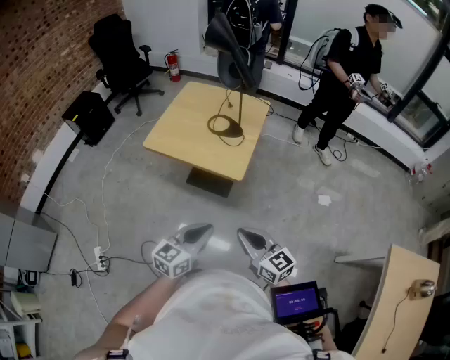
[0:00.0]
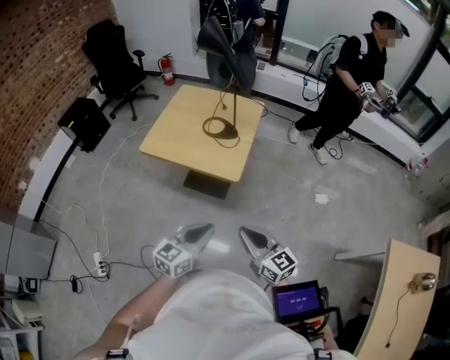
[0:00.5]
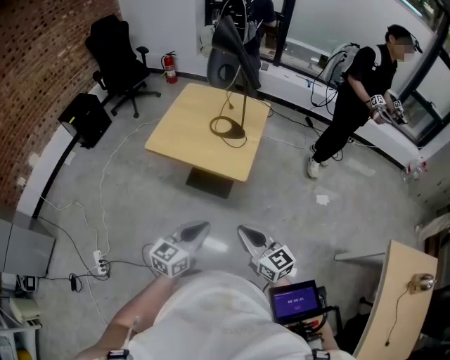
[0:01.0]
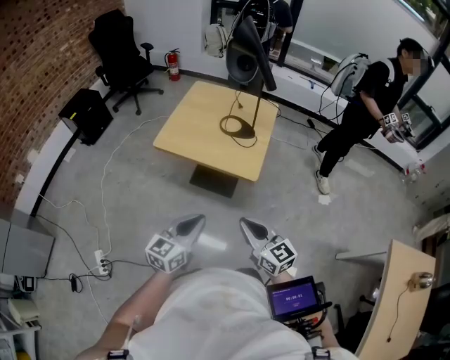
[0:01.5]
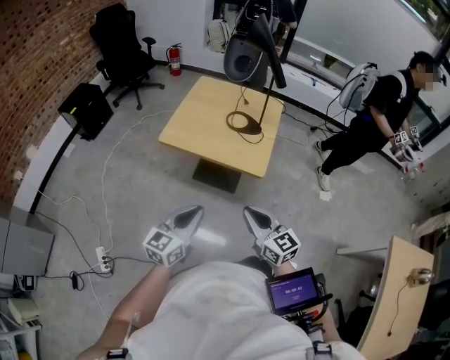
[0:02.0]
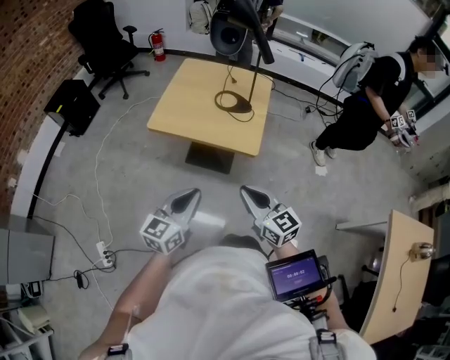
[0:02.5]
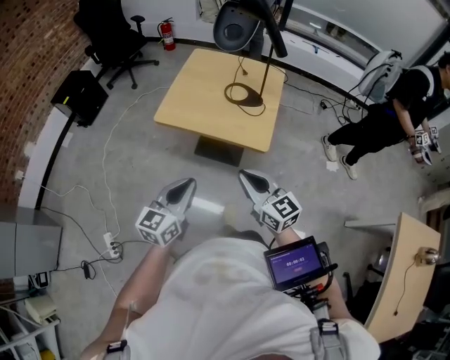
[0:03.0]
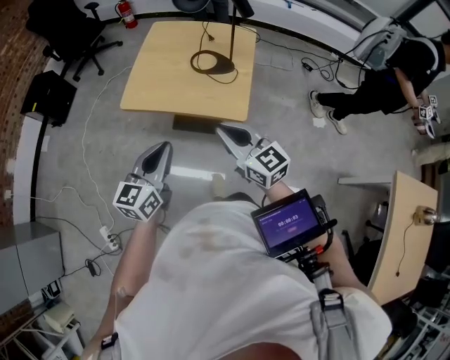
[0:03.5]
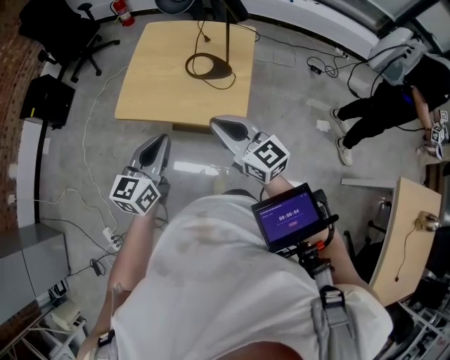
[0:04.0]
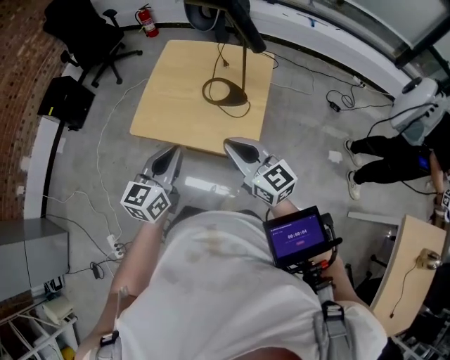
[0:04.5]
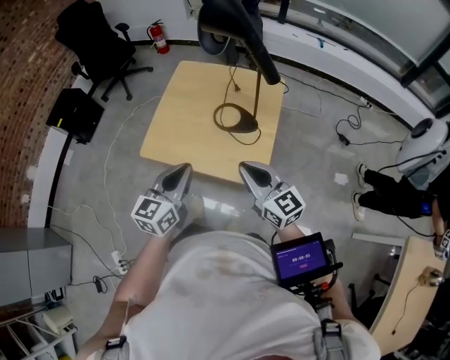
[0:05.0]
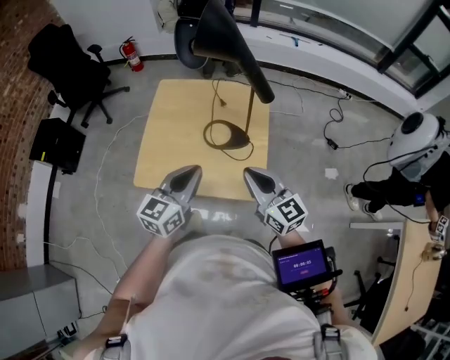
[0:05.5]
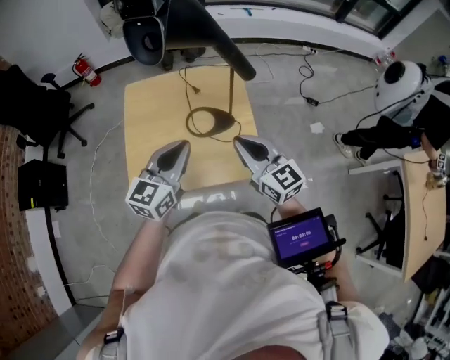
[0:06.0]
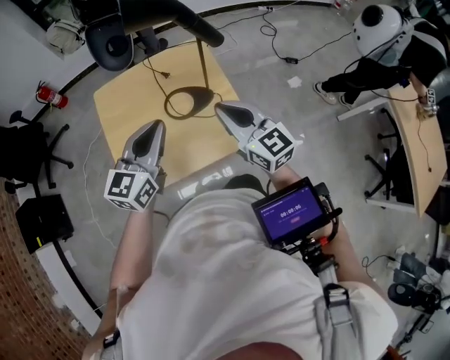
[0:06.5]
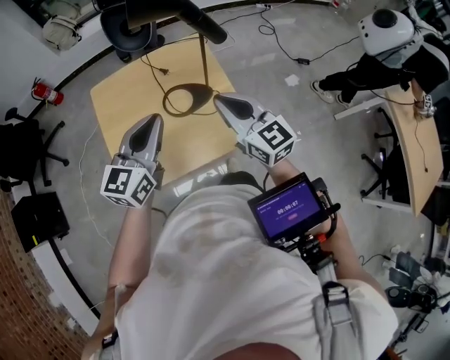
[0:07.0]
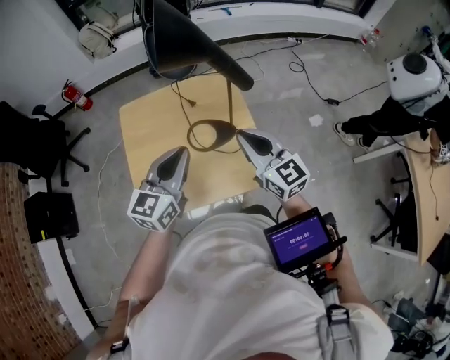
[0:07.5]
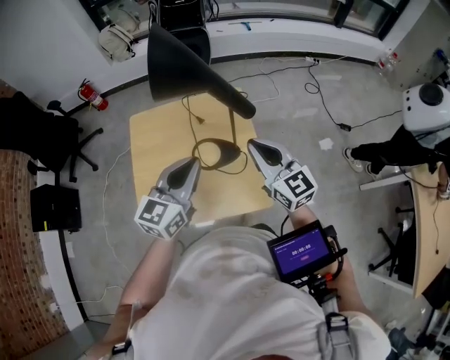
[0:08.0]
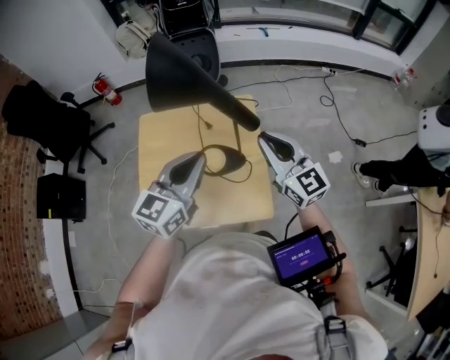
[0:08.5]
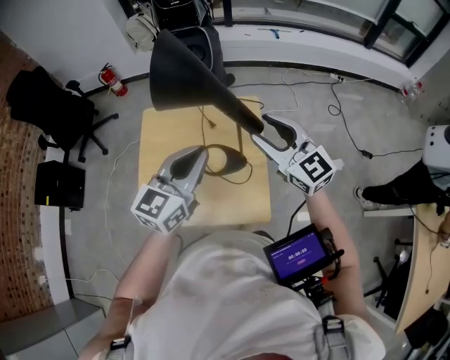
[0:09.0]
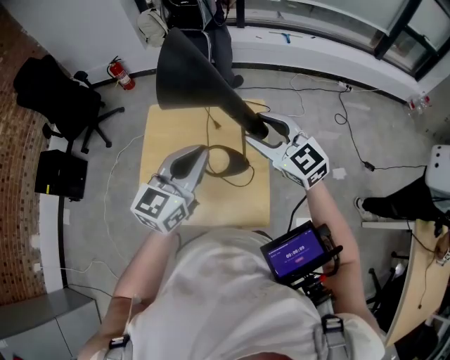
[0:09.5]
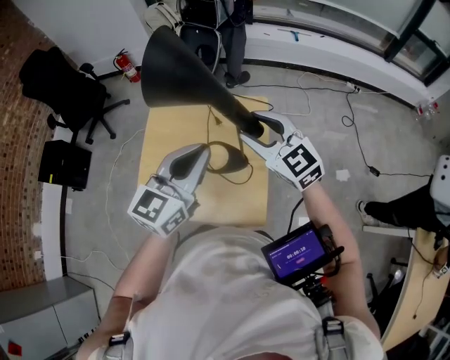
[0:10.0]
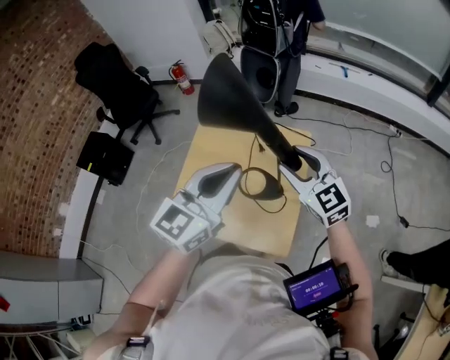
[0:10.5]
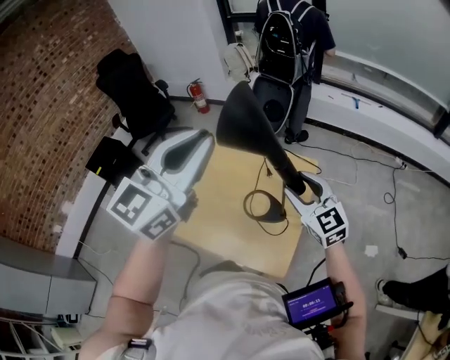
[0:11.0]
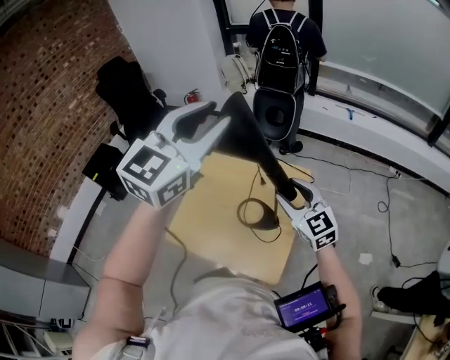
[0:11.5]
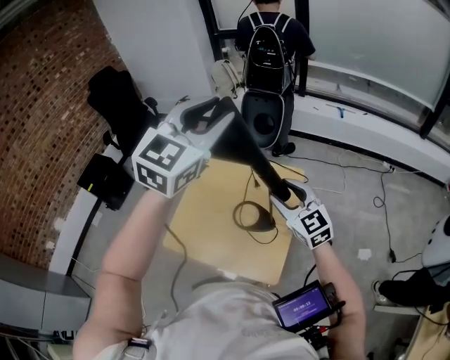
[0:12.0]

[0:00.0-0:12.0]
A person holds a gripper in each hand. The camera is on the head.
0:00.0 to 0:02.0: The grippers both shift to the left by some 15 cm.
0:02.0 to 0:04.0: The grippers both shift forward by about 20 cm.
0:04.0 to 0:06.0: The right gripper ends up some 15 cm from where it was, and turns by roughly 30 degrees. Meanwhile the left gripper ends up roughly 20 cm from where it was, and swivels some 30 degrees.
0:06.0 to 0:08.0: The left gripper moves to the right and forward, roughly 10 cm; the right gripper shifts approximately 10 cm forward and to the right.
0:08.0 to 0:10.0: The right gripper travels forward by roughly 10 cm, rotates approximately 30 degrees, and opens up. Meanwhile the left gripper moves upward, some 5 cm.
0:10.0 to 0:12.0: The left gripper travels upward and forward by approximately 20 cm, rotates about 30 degrees, and opens up.

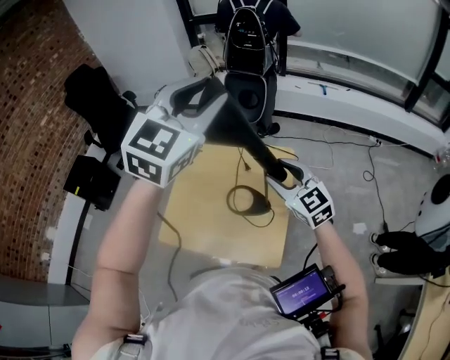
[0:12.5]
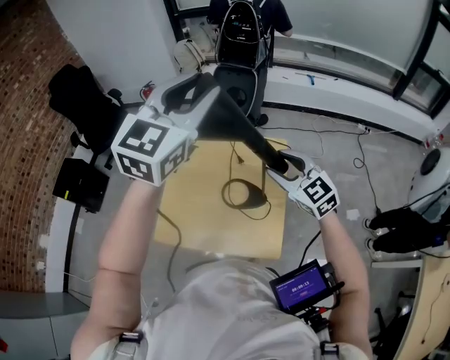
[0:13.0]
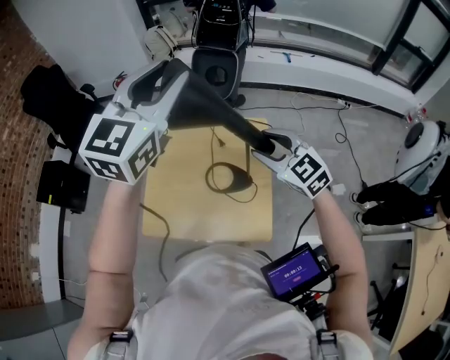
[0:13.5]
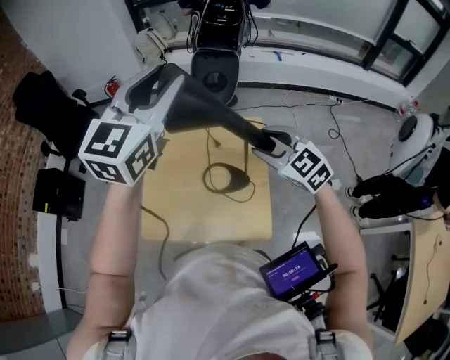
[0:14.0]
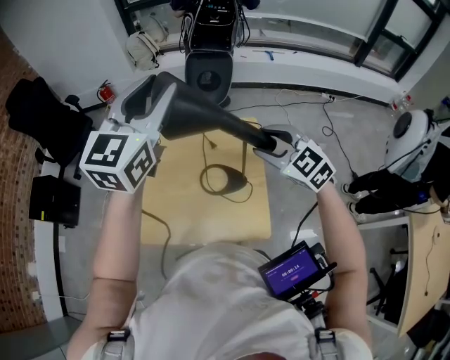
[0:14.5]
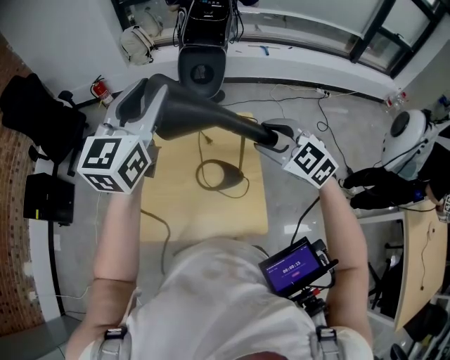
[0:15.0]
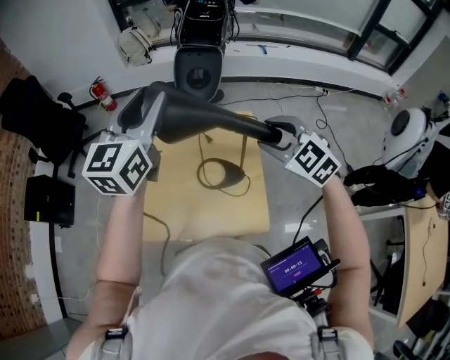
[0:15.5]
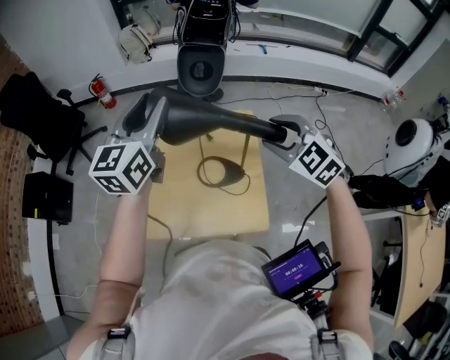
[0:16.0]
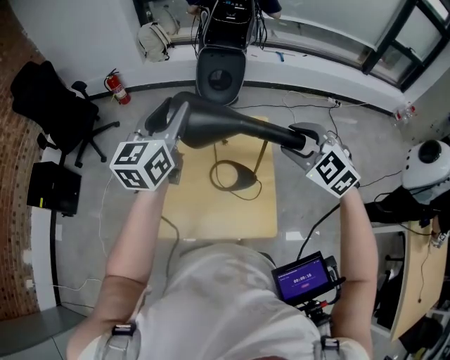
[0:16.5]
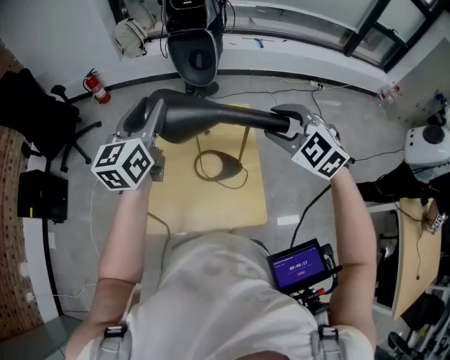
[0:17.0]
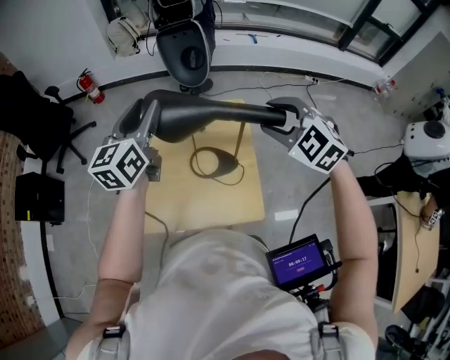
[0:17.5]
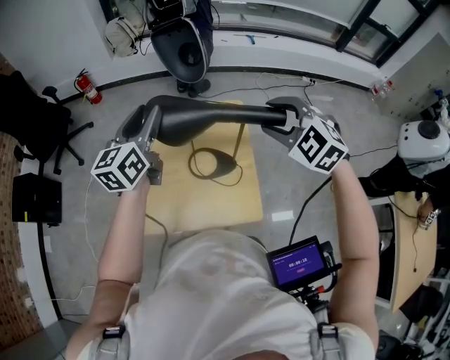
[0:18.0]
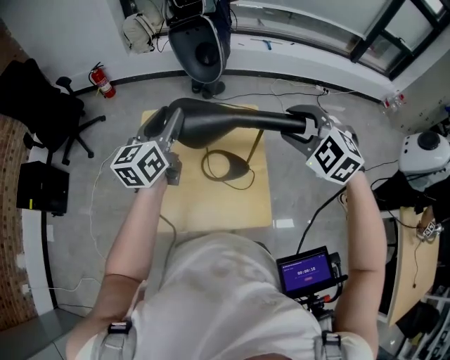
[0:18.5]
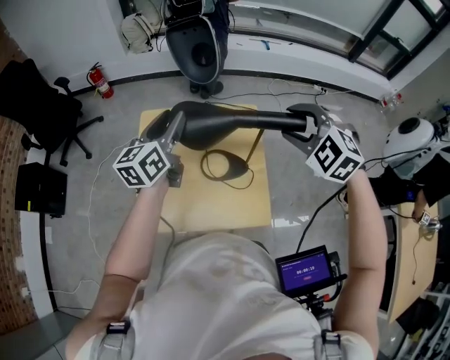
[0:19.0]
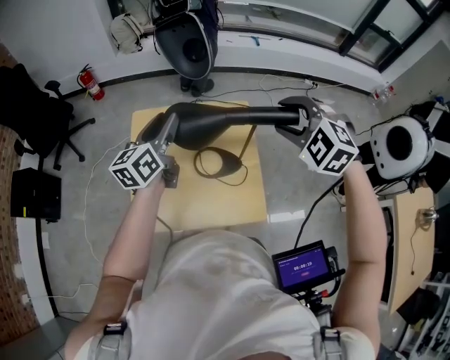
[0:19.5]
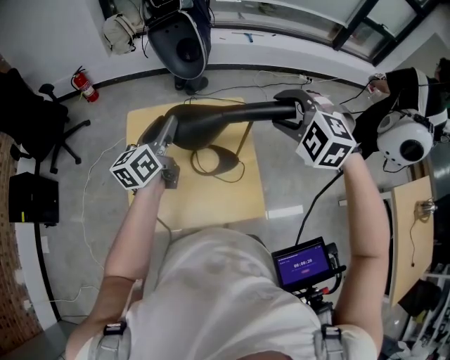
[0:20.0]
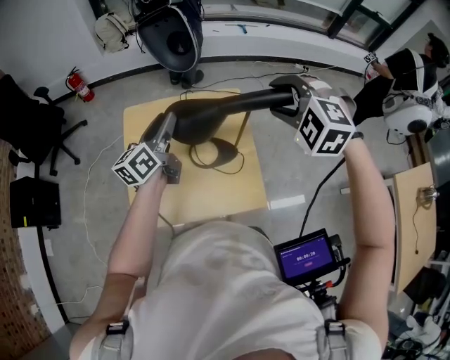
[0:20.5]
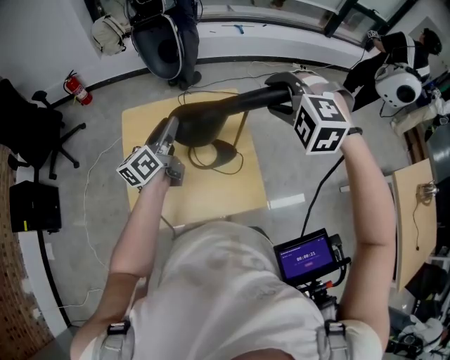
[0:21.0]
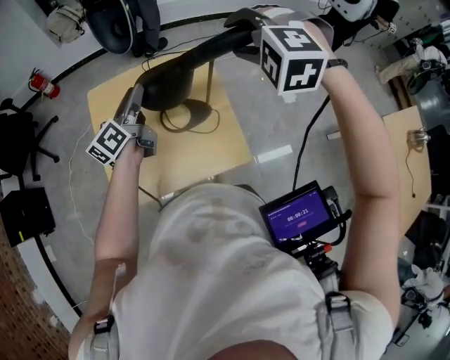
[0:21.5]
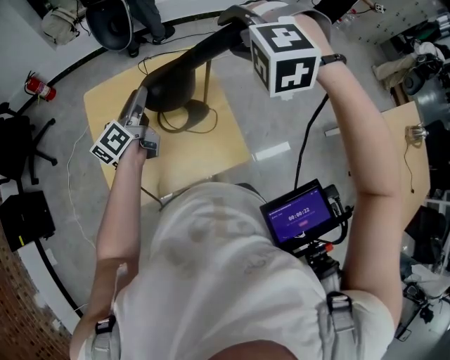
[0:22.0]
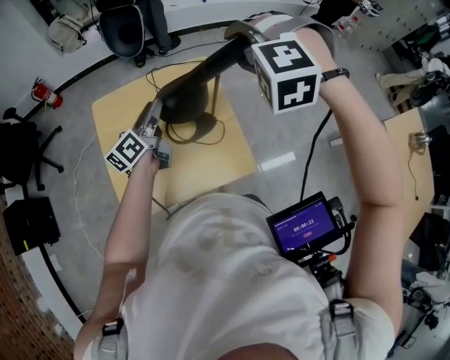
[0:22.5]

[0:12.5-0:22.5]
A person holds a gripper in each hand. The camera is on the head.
0:12.5 to 0:14.5: The left gripper goes roughly 5 cm to the left.
0:14.5 to 0:16.5: The left gripper moves downward, about 10 cm.
0:16.5 to 0:18.5: The left gripper heads downward, covering approximately 10 cm.
0:18.5 to 0:20.5: The left gripper shifts roughly 10 cm downward.
0:20.5 to 0:22.5: The right gripper turns by approximately 20 degrees; the left gripper moves downward and to the right, about 10 cm.

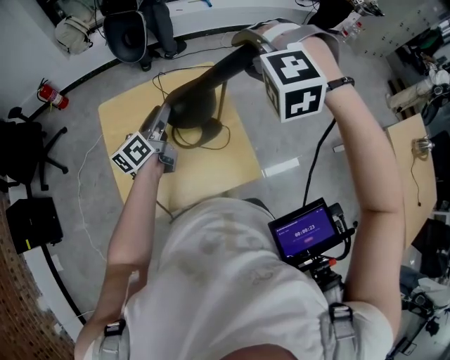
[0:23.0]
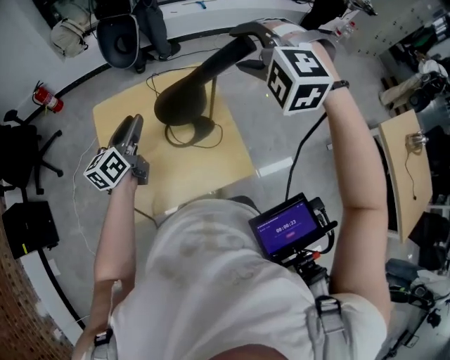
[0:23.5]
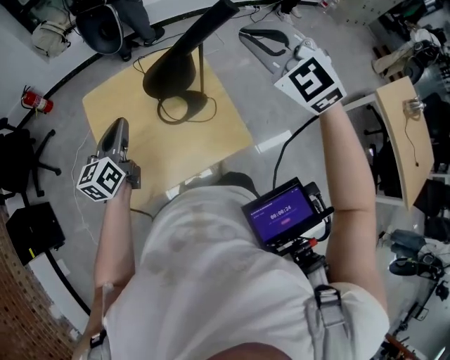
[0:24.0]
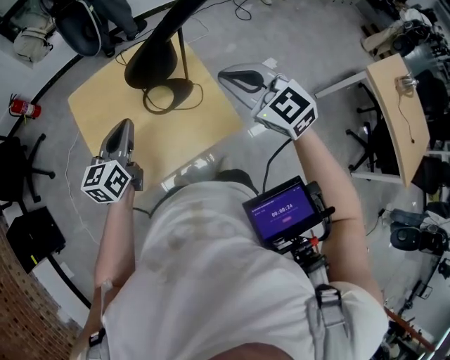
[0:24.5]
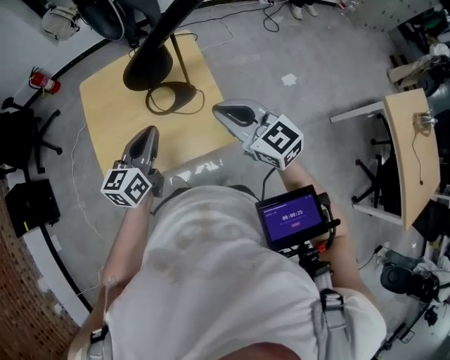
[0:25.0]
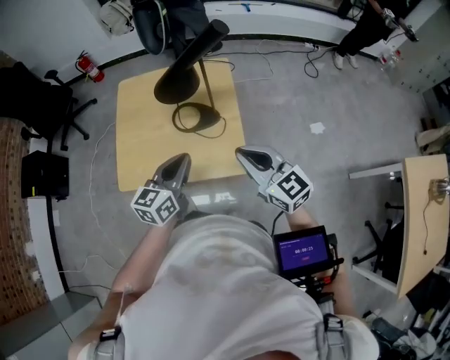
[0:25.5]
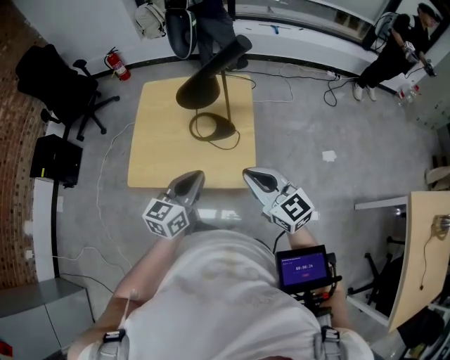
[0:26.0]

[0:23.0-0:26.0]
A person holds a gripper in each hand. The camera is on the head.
0:23.0 to 0:24.5: The left gripper shifts about 10 cm backward, rotates some 30 degrees, and closes its fingers, while the right gripper moves backward and downward, roughly 15 cm, rotates around the line of its fingers by some 70 degrees, clockwise from behind, and closes.
0:24.5 to 0:26.0: The right gripper heads backward, covering approximately 15 cm, and turns by some 30 degrees. Meanwhile the left gripper heads backward and to the right, covering about 25 cm.

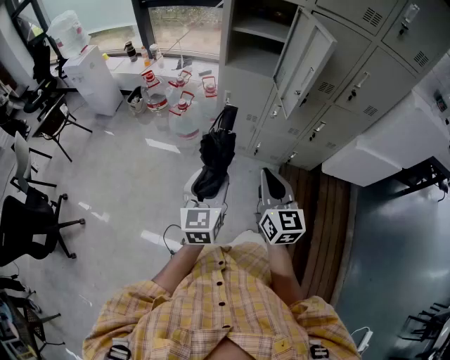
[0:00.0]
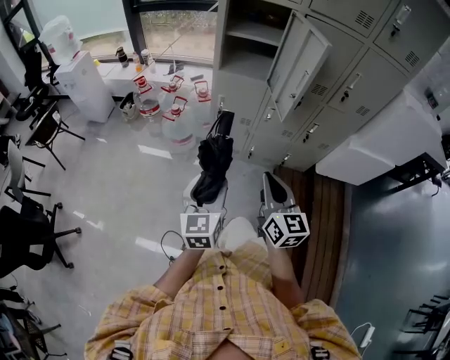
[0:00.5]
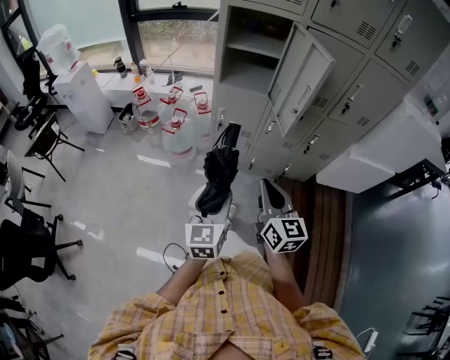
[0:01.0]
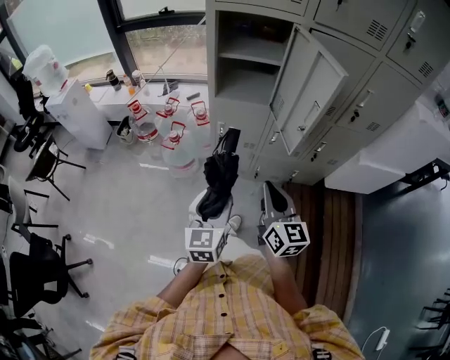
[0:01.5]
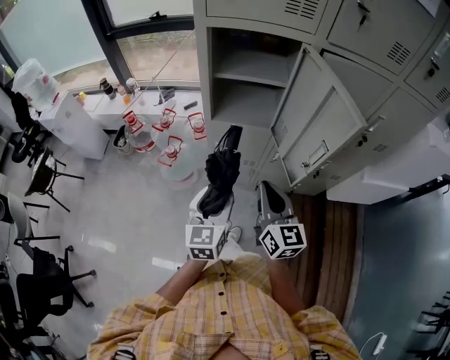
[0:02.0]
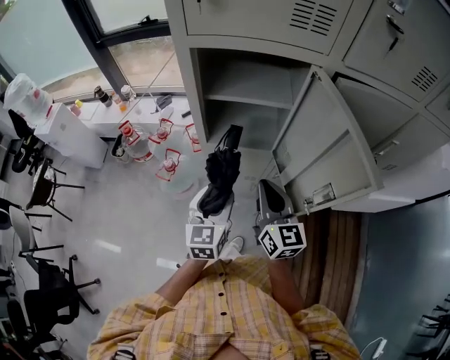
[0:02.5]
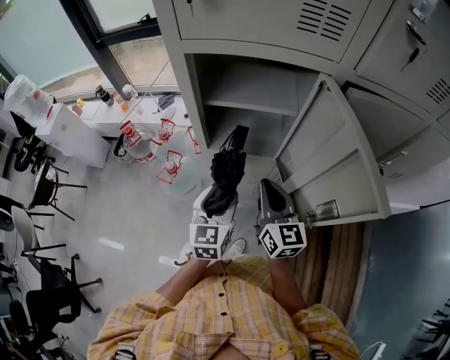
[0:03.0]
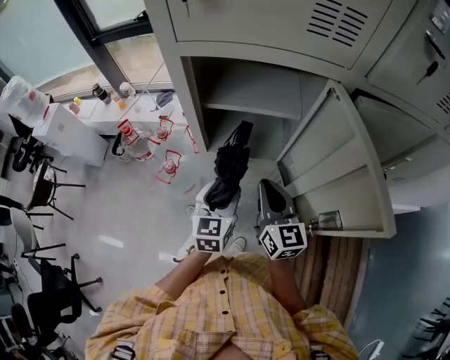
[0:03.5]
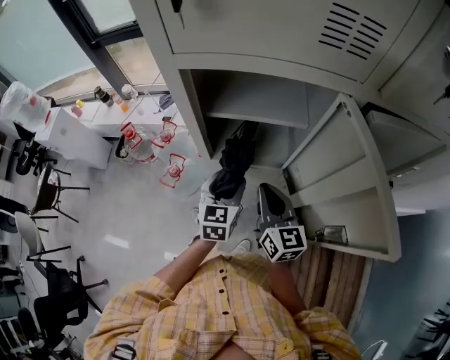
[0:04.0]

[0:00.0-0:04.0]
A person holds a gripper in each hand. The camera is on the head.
0:00.0 to 0:02.0: Both grippers travel together forward, some 25 cm.
0:02.0 to 0:04.0: The grippers both shift forward by about 20 cm.
